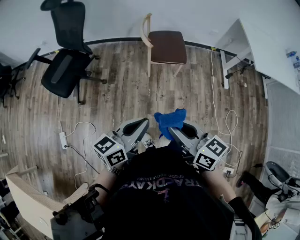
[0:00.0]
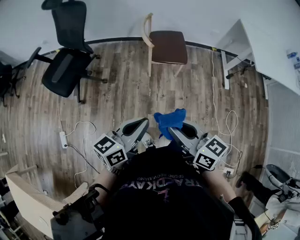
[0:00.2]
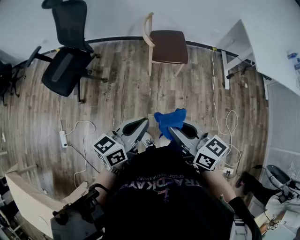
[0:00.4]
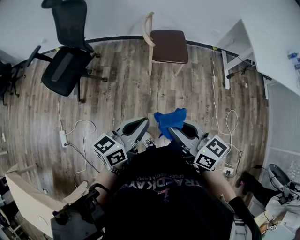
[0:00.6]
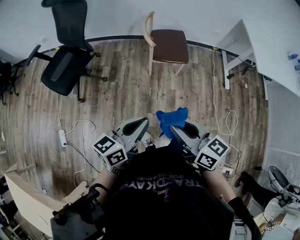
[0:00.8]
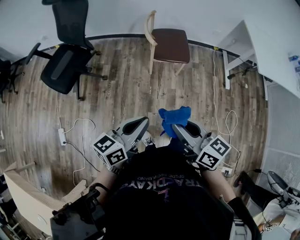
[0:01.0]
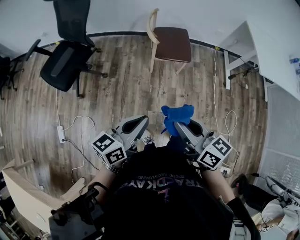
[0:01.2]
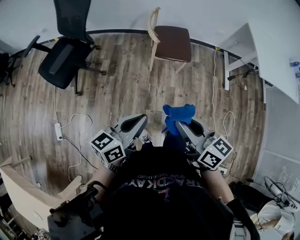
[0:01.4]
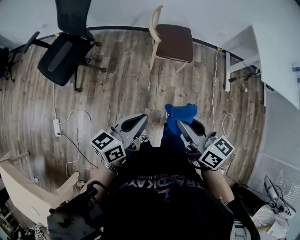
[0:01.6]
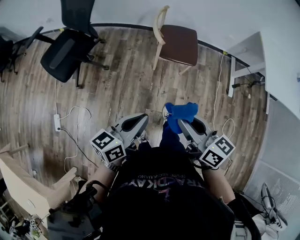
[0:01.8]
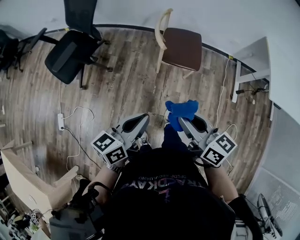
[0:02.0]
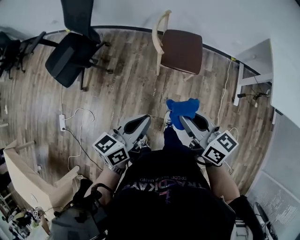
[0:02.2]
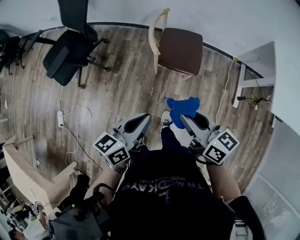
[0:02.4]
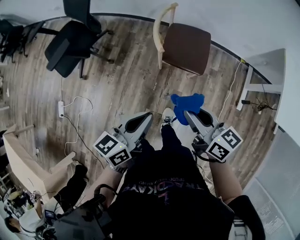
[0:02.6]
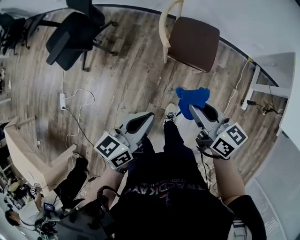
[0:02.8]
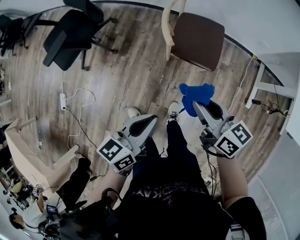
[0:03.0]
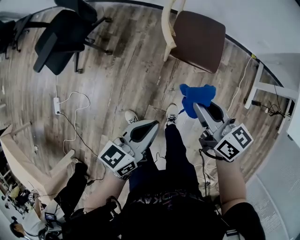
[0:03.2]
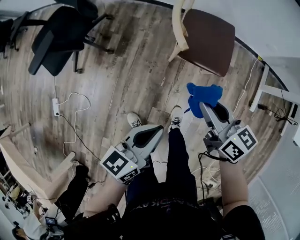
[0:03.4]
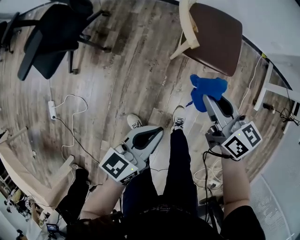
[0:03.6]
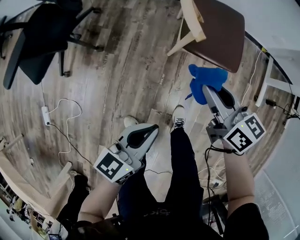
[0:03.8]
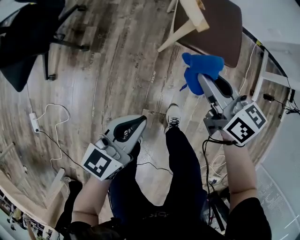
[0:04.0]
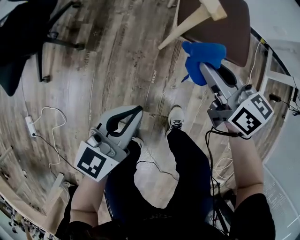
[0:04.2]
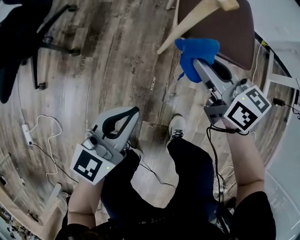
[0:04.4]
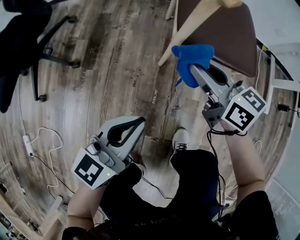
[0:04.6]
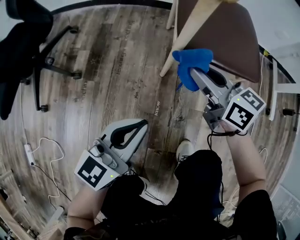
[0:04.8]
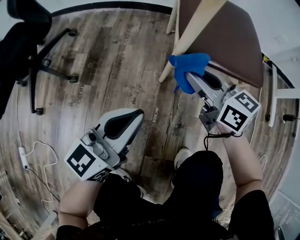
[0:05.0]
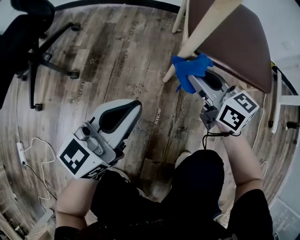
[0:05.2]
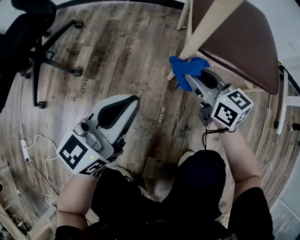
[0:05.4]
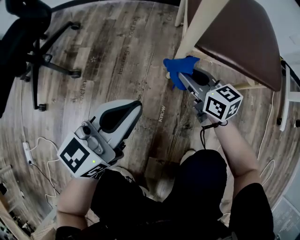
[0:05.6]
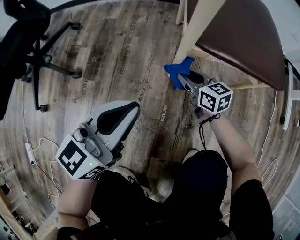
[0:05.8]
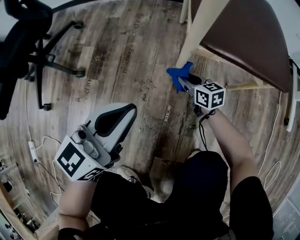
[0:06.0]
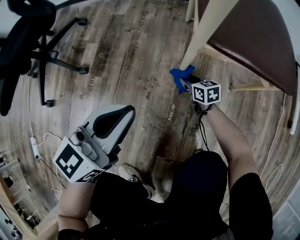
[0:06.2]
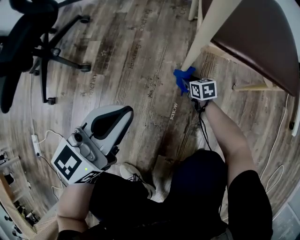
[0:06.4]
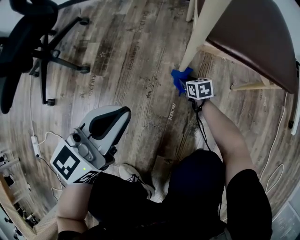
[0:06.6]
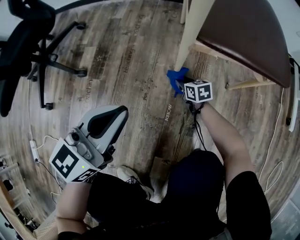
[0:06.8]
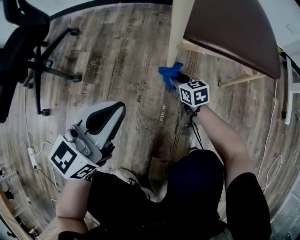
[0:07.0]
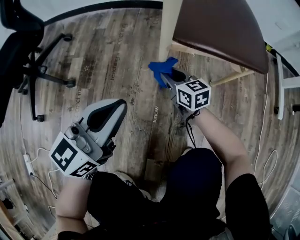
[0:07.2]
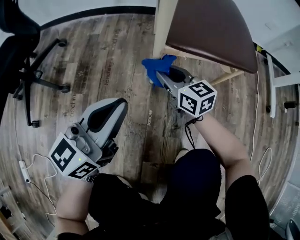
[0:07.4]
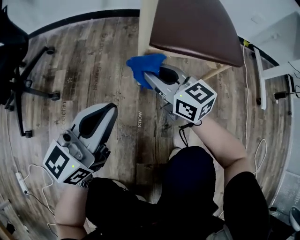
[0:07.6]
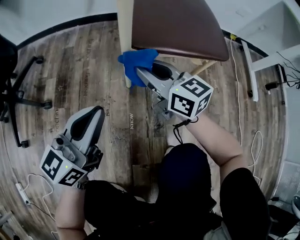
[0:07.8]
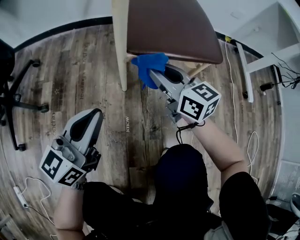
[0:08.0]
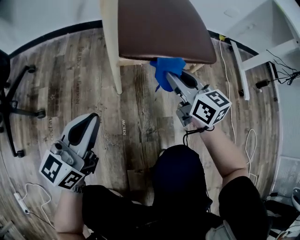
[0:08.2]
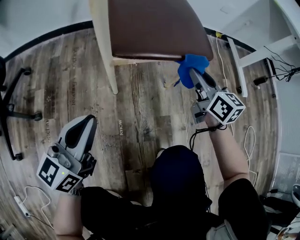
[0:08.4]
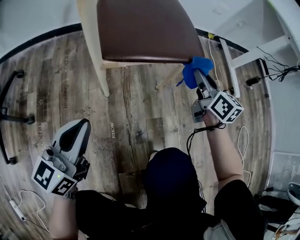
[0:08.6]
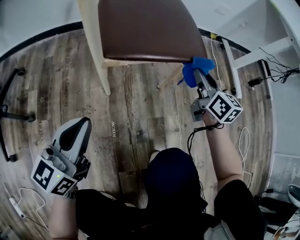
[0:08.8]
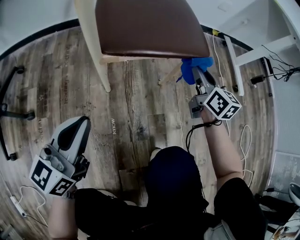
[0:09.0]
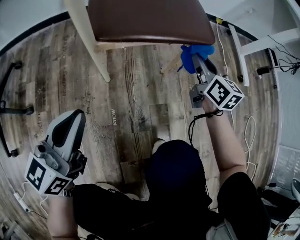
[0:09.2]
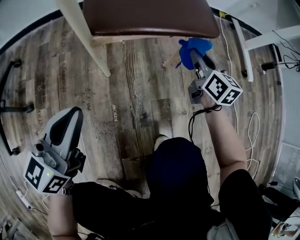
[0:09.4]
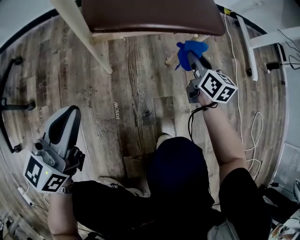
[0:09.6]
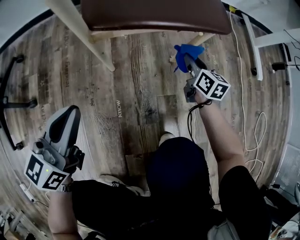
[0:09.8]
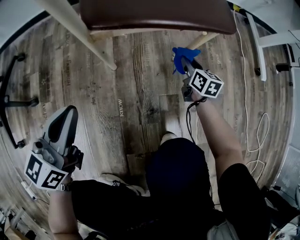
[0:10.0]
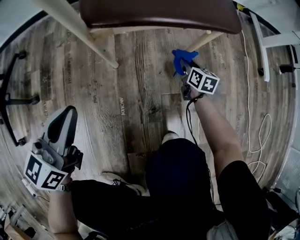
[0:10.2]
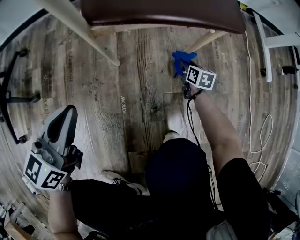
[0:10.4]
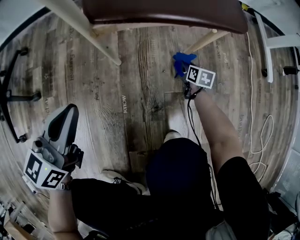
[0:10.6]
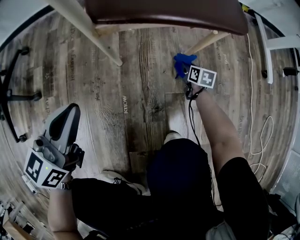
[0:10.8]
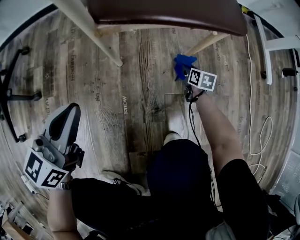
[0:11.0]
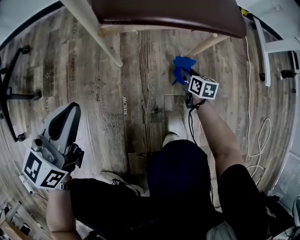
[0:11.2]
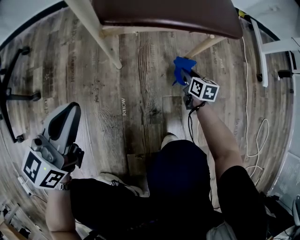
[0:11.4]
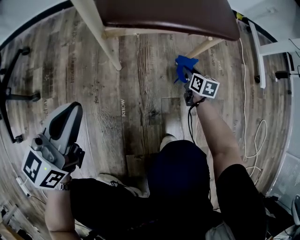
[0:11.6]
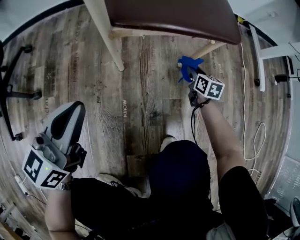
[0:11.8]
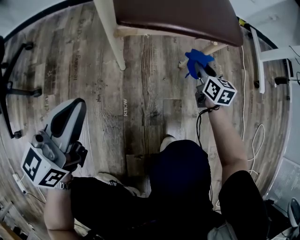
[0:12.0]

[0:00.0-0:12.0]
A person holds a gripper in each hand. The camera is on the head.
0.0 to 1.6 s: The right gripper is displaced forward by about 5 cm.
1.6 to 3.0 s: Both grippers move forward, to the right and downward, roughly 30 cm.
3.0 to 4.4 s: The grippers both shift downward by some 40 cm. The left gripper swivels roughly 30 degrees.
4.4 to 6.0 s: The right gripper moves downward, roughly 40 cm. Meanwhile the left gripper moves downward and forward, roughly 15 cm.
6.0 to 7.6 s: The right gripper goes roughly 25 cm upward, and turns by about 20 degrees.
7.6 to 9.0 s: The right gripper is displaced to the right by roughly 30 cm, and changes its angle by about 40 degrees.
9.0 to 10.4 s: The right gripper travels downward by about 30 cm, and rotates roughly 30 degrees; the left gripper moves downward, approximately 5 cm.
10.4 to 12.0 s: The right gripper travels upward by about 15 cm.

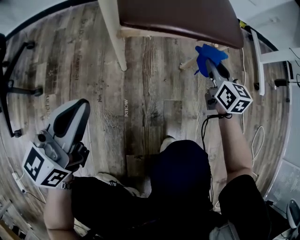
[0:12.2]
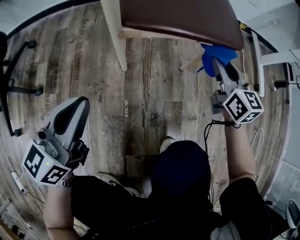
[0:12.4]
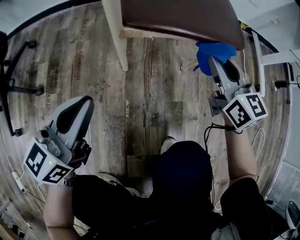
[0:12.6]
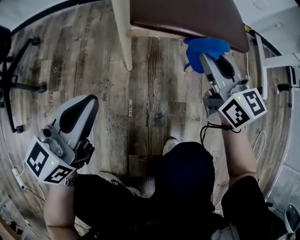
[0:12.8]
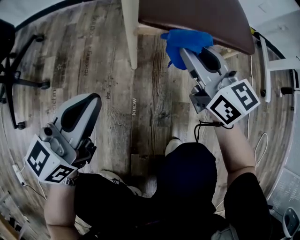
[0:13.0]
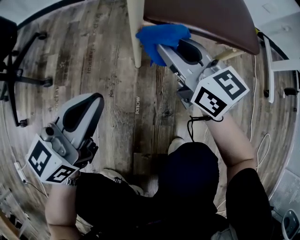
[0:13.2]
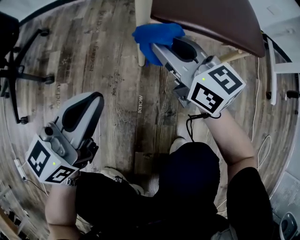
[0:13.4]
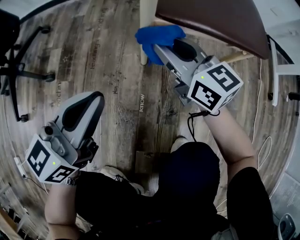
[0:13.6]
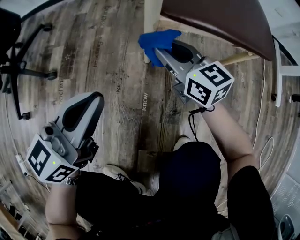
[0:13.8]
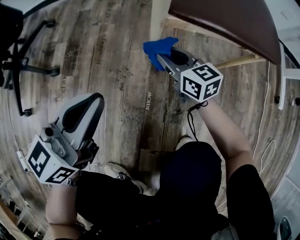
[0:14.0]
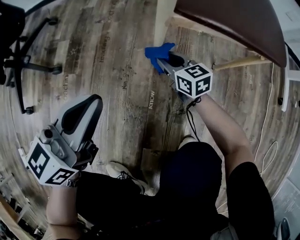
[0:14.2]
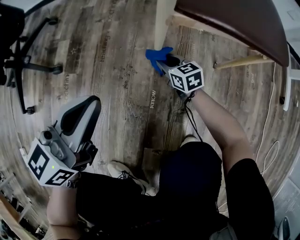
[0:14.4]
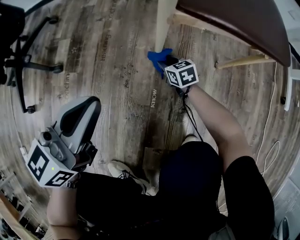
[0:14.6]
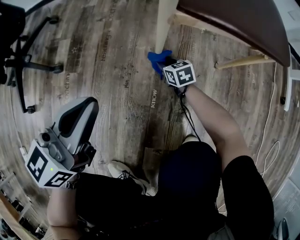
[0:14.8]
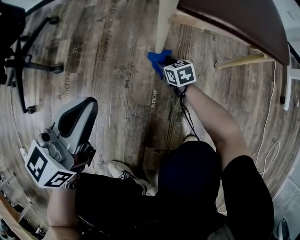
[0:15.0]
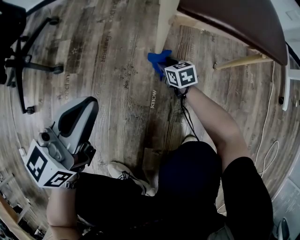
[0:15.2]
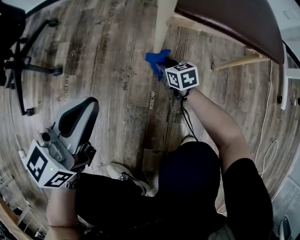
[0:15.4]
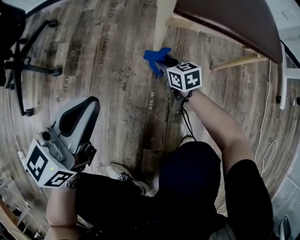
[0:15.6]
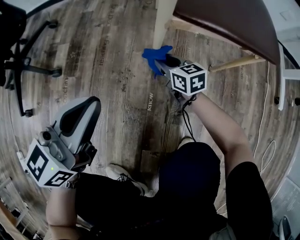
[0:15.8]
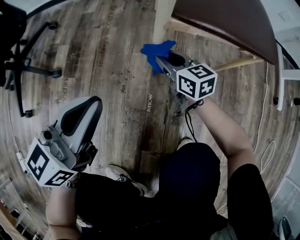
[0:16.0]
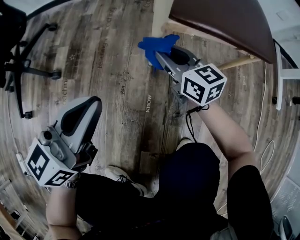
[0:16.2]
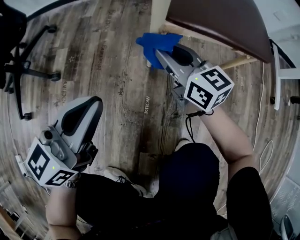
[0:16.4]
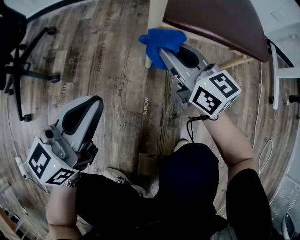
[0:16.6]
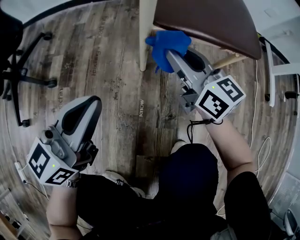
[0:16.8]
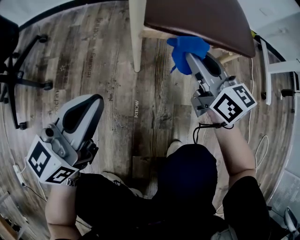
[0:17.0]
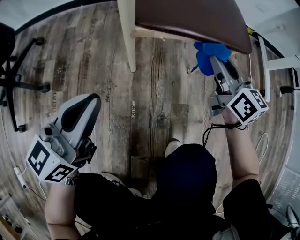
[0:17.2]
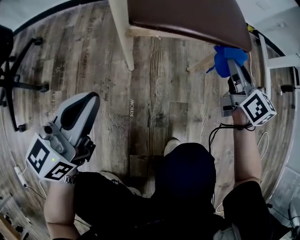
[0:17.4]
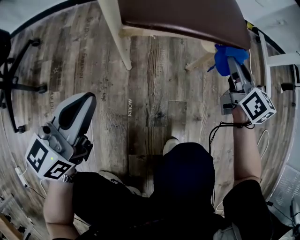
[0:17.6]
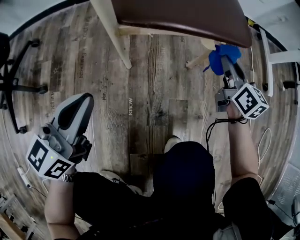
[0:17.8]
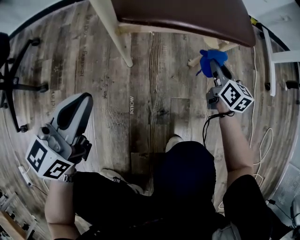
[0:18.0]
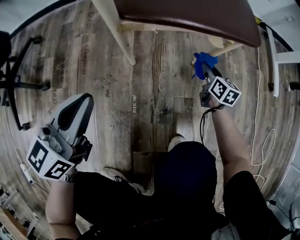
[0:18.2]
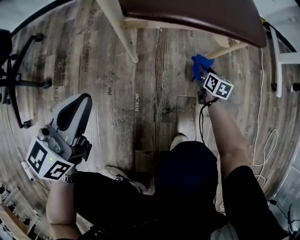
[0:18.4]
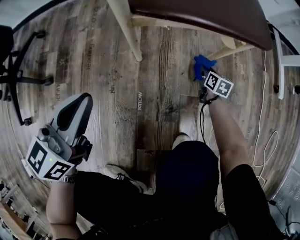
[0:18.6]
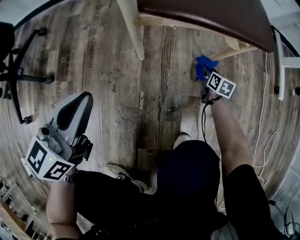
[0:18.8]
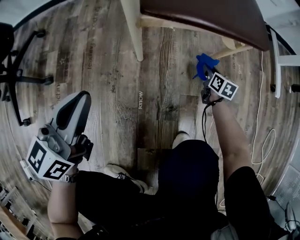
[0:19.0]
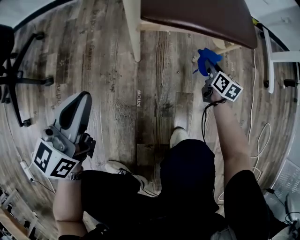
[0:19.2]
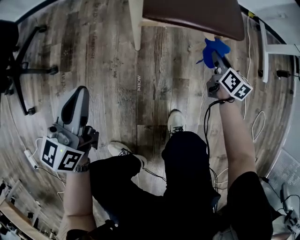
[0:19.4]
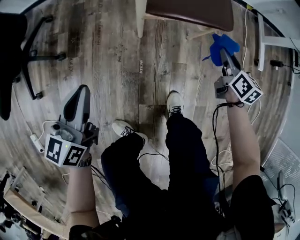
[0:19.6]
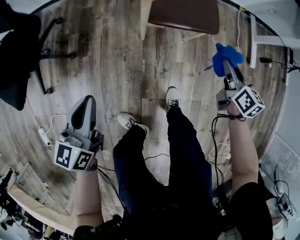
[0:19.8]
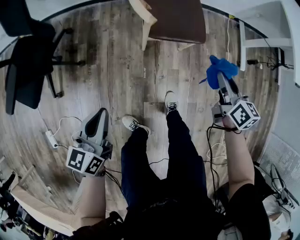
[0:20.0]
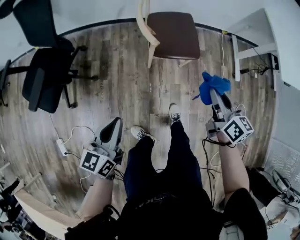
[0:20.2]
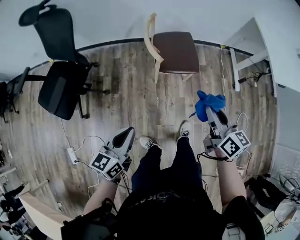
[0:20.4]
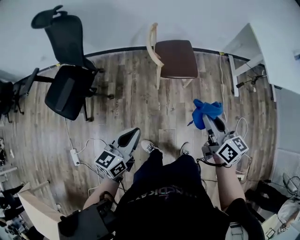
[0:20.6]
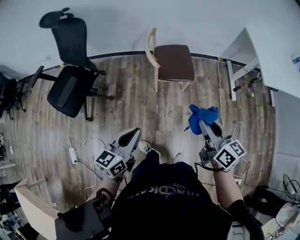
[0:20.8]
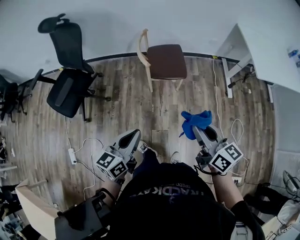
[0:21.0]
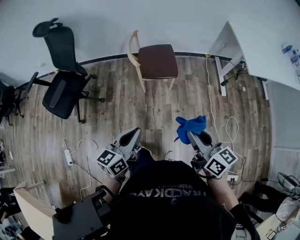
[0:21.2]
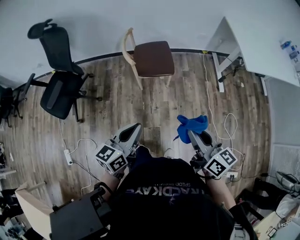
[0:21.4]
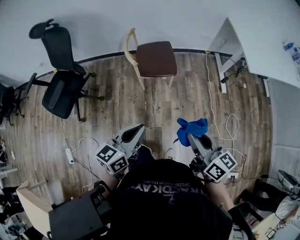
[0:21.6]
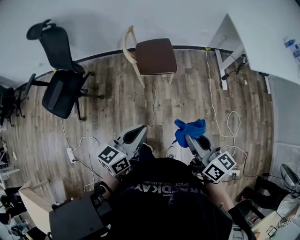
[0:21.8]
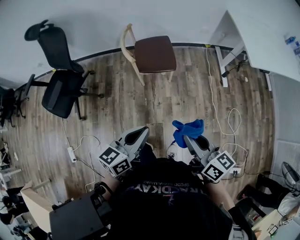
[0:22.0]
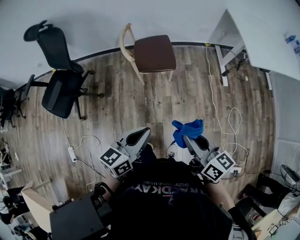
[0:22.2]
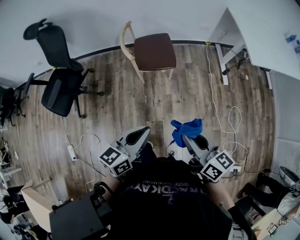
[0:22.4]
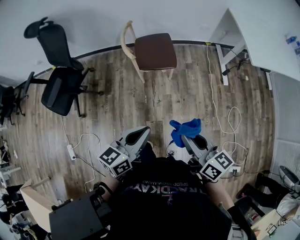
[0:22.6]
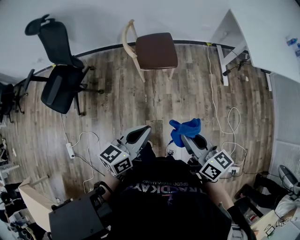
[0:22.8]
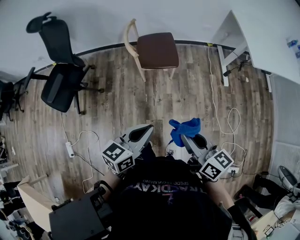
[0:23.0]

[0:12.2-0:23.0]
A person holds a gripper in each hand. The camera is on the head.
12.2 to 13.8 s: The right gripper is displaced to the left by about 30 cm, and swivels approximately 40 degrees.
13.8 to 15.2 s: The right gripper is displaced downward by roughly 25 cm, and turns by some 30 degrees.
15.2 to 16.8 s: The right gripper is displaced upward by approximately 35 cm, and tilts its fingers about 40 degrees upward.
16.8 to 18.4 s: The right gripper travels downward and to the right by roughly 40 cm, and tilts its fingers approximately 40 degrees downward; the left gripper shifts by about 5 cm.
18.4 to 20.0 s: The left gripper travels upward and backward by approximately 40 cm, while the right gripper goes about 70 cm upward.
20.0 to 21.4 s: The left gripper heads upward, to the right and backward, covering some 40 cm. Meanwhile the right gripper travels upward and backward by roughly 50 cm, and rotates roughly 20 degrees.
21.4 to 23.0 s: There are only small adjustments of the grippers.

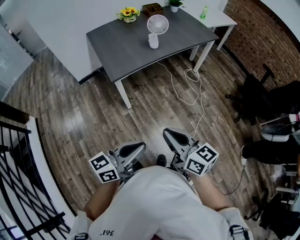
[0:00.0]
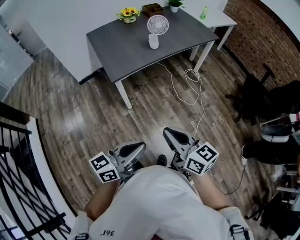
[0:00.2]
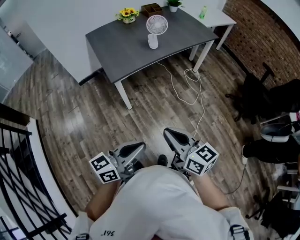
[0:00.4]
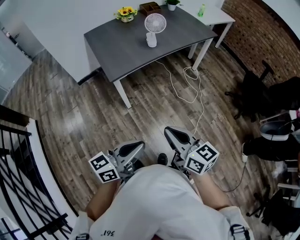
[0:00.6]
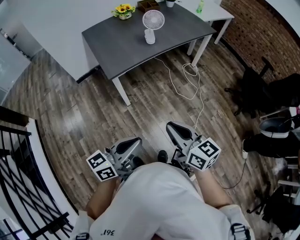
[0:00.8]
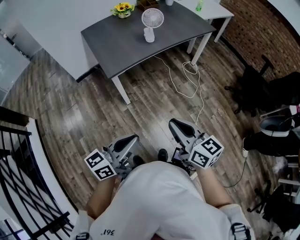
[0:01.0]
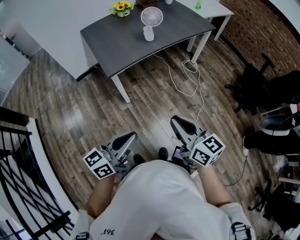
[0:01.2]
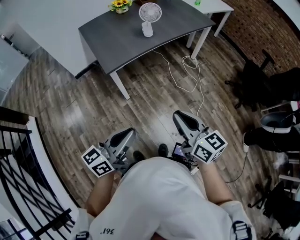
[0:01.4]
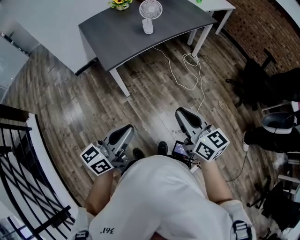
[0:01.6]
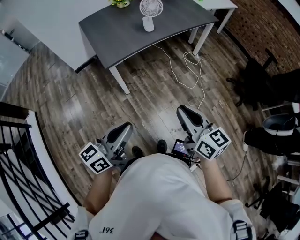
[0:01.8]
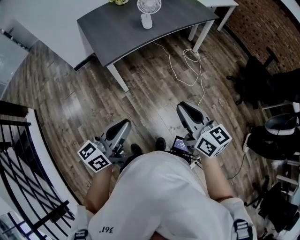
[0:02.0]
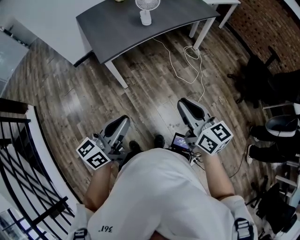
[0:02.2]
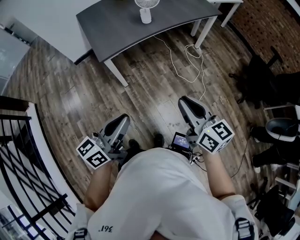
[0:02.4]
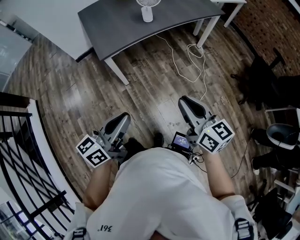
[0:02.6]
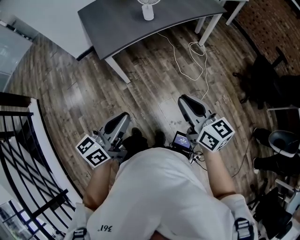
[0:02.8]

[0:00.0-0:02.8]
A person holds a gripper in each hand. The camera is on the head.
0.0 to 1.4 s: The right gripper goes some 5 cm to the right.
1.4 to 2.8 s: The left gripper changes place by about 5 cm. The right gripper moves to the right and forward, about 10 cm.
